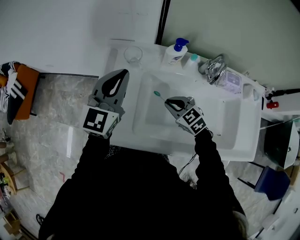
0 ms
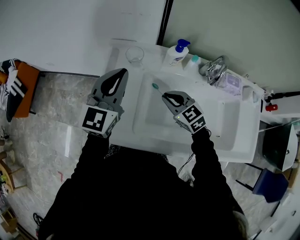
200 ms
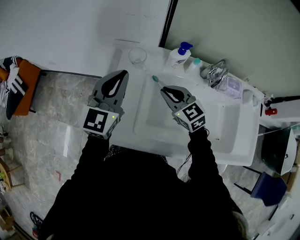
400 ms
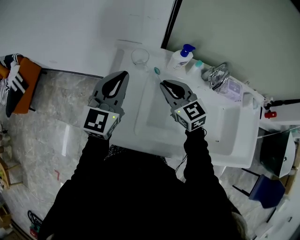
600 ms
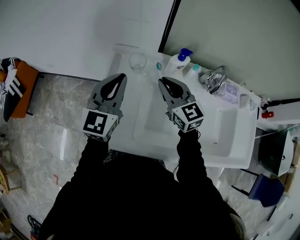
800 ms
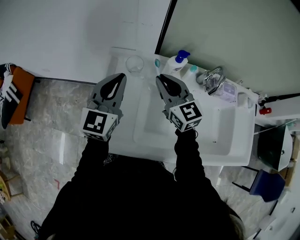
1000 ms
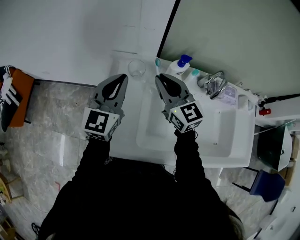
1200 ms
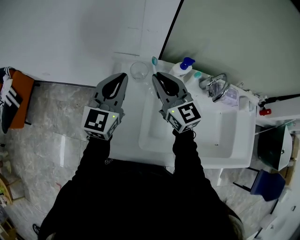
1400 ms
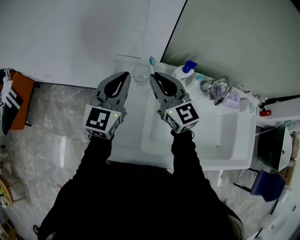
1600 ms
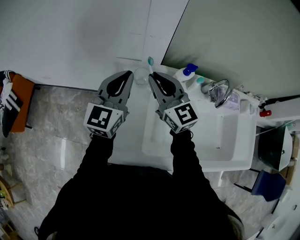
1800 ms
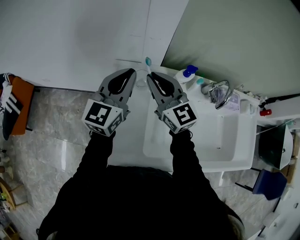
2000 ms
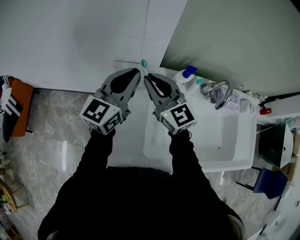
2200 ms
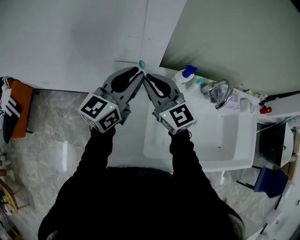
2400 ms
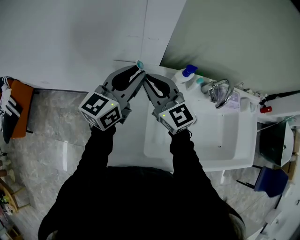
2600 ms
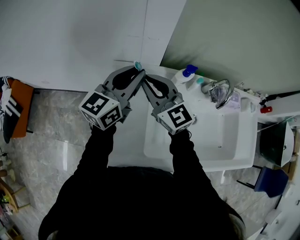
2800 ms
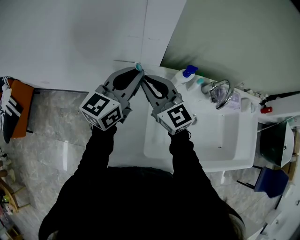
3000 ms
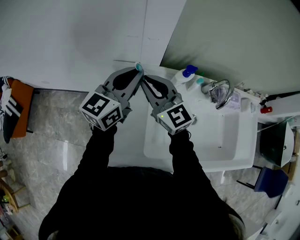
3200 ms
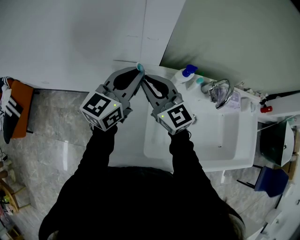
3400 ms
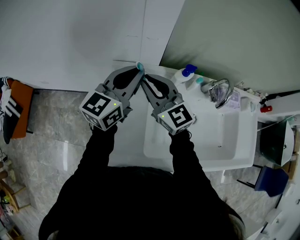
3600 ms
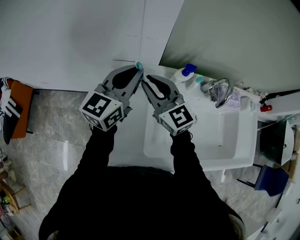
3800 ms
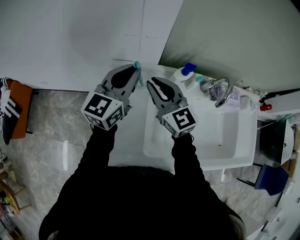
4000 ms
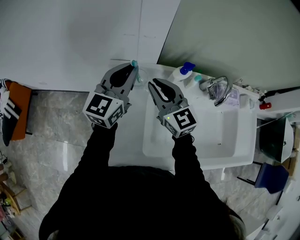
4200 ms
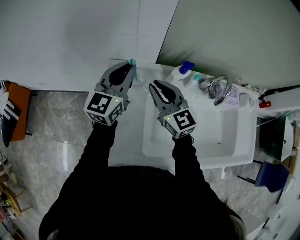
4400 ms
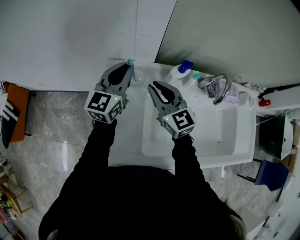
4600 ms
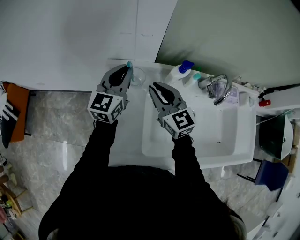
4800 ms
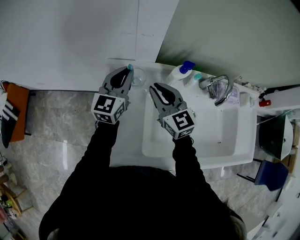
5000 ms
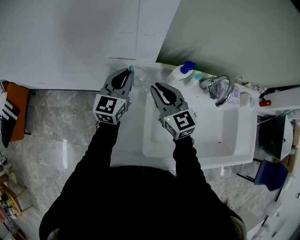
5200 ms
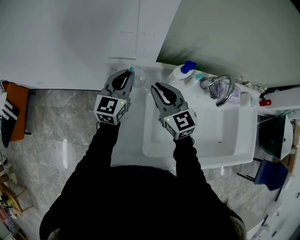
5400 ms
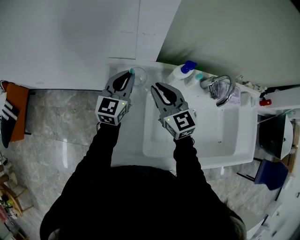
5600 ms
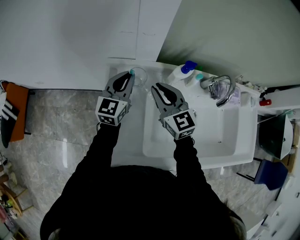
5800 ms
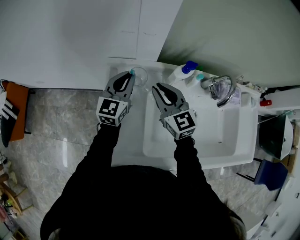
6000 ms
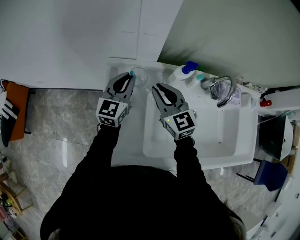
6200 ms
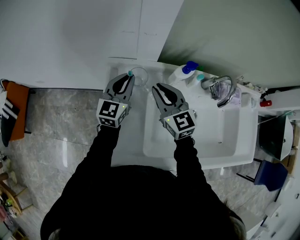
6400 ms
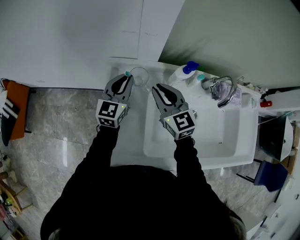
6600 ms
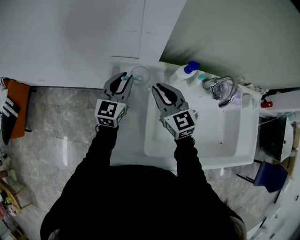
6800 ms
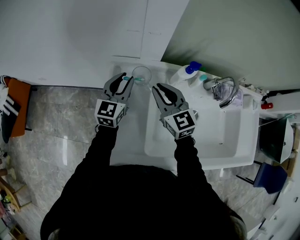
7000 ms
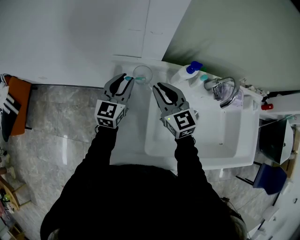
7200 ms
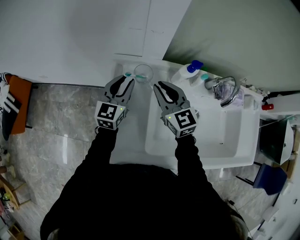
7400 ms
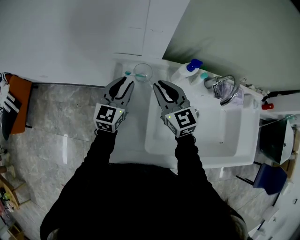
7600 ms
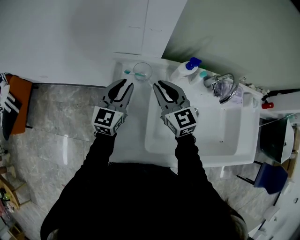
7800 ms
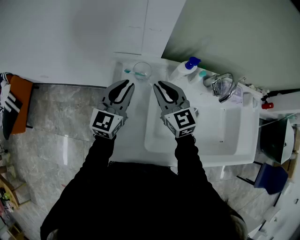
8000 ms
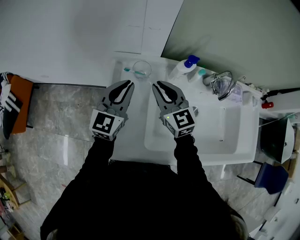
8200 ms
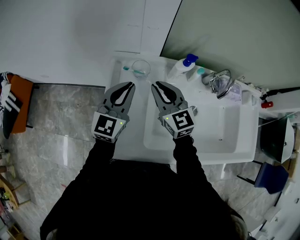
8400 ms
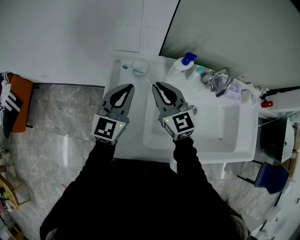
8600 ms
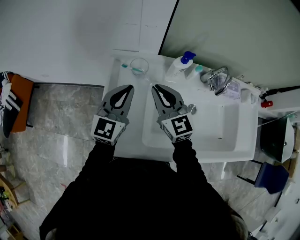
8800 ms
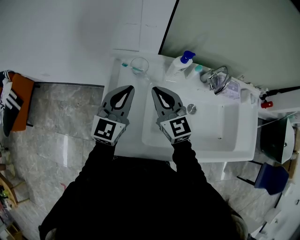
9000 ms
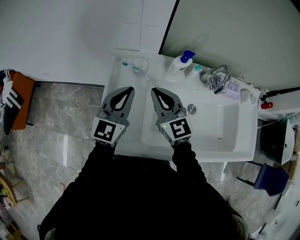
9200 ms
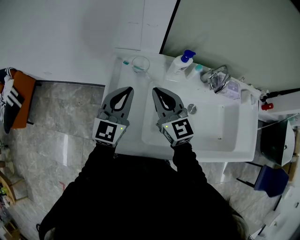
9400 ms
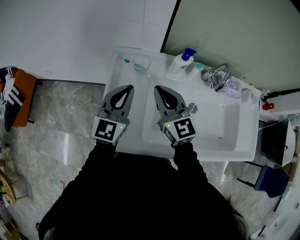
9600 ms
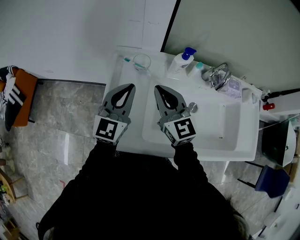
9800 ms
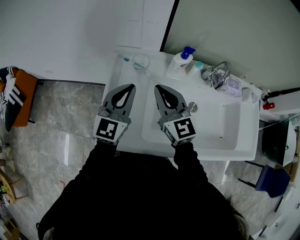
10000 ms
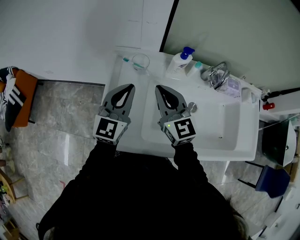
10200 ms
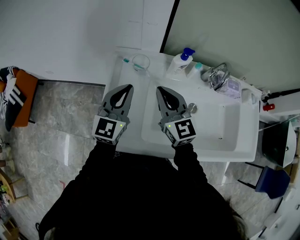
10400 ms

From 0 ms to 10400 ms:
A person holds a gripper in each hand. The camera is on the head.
From 0 ms to 1400 ms: The right gripper moves upward, forward and to the left, about 25 cm, and tips its fingers upward by about 40 degrees. Meanwhile the left gripper goes about 5 cm forward.
From 1400 ms to 3000 ms: The right gripper moves to the left, approximately 5 cm. Meanwhile the left gripper moves about 5 cm, and rotates approximately 20 degrees.
From 3000 ms to 4400 ms: The right gripper shifts by approximately 5 cm.
From 4400 ms to 6000 ms: The left gripper travels downward by approximately 10 cm.
From 6000 ms to 7400 ms: The left gripper opens up.
From 7400 ms to 9000 ms: The left gripper shifts approximately 15 cm backward and upward, and closes its fingers; the right gripper moves backward, about 5 cm.
From 9000 ms to 10400 ms: There are only small adjustments of the grippers.

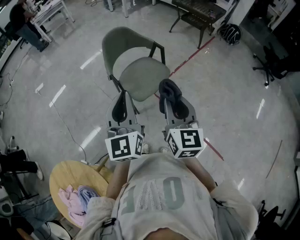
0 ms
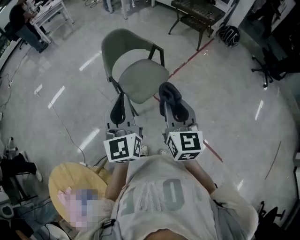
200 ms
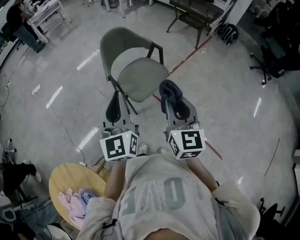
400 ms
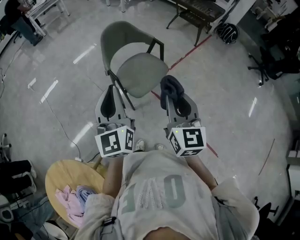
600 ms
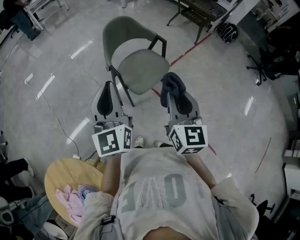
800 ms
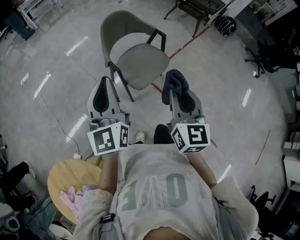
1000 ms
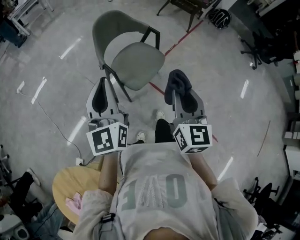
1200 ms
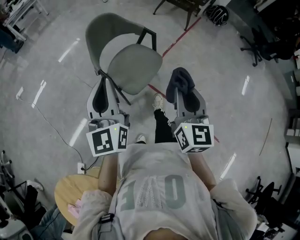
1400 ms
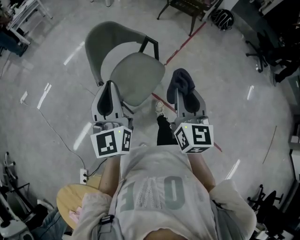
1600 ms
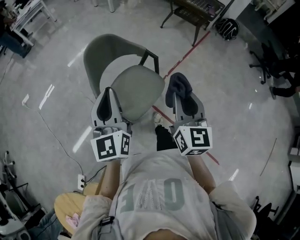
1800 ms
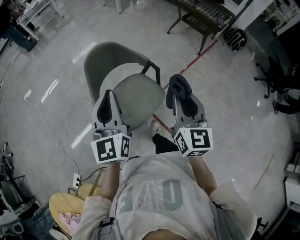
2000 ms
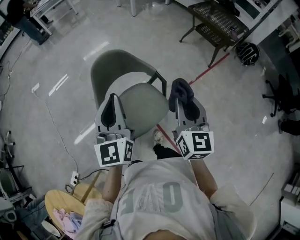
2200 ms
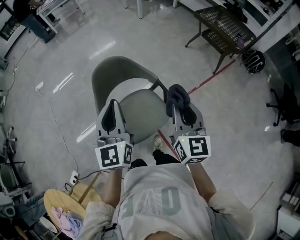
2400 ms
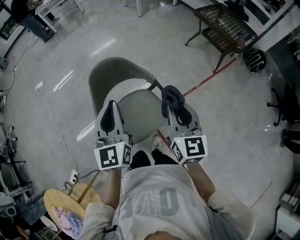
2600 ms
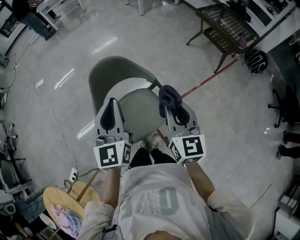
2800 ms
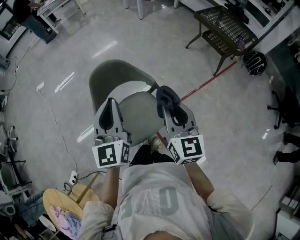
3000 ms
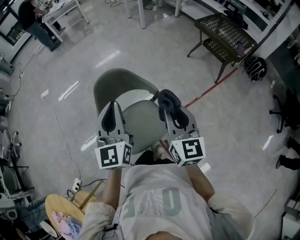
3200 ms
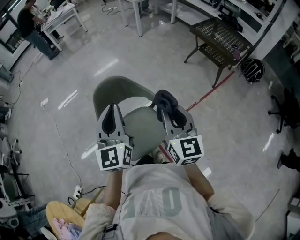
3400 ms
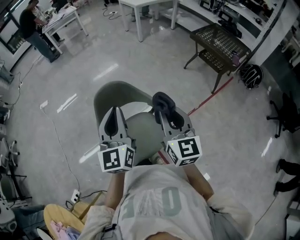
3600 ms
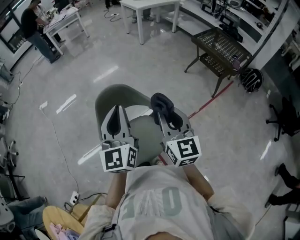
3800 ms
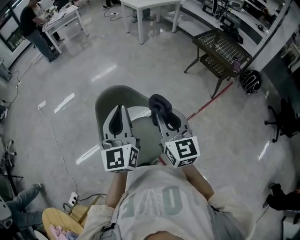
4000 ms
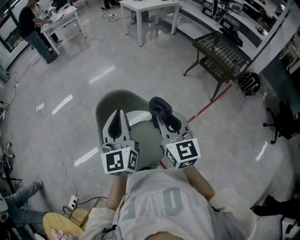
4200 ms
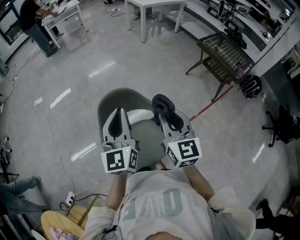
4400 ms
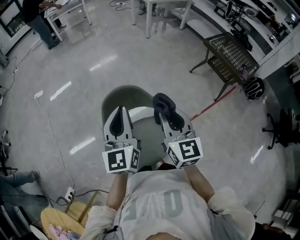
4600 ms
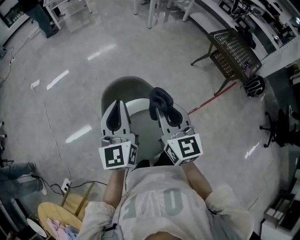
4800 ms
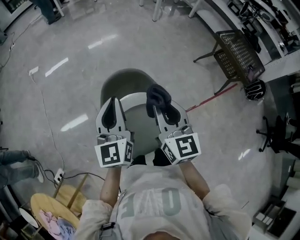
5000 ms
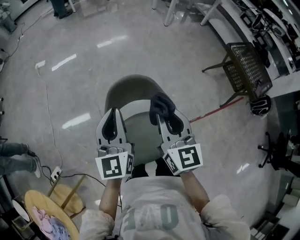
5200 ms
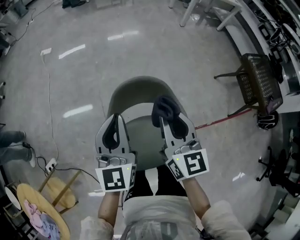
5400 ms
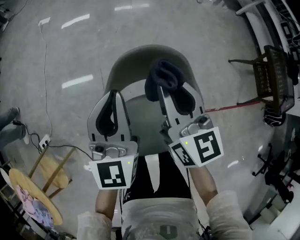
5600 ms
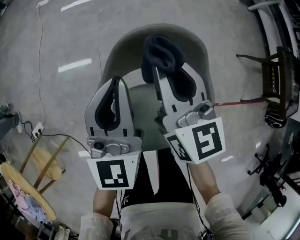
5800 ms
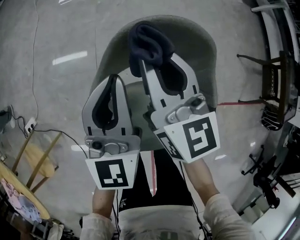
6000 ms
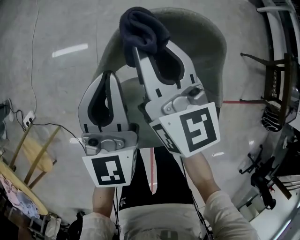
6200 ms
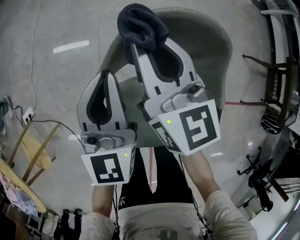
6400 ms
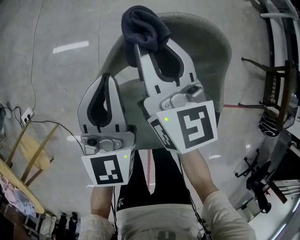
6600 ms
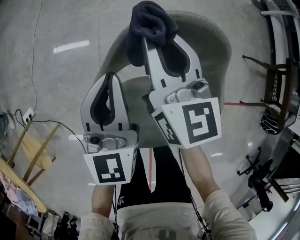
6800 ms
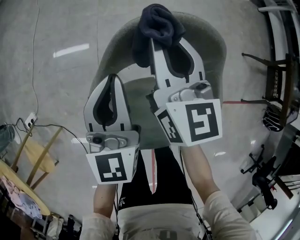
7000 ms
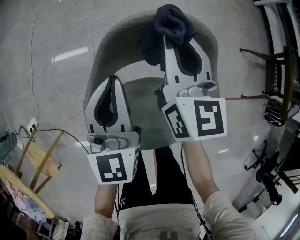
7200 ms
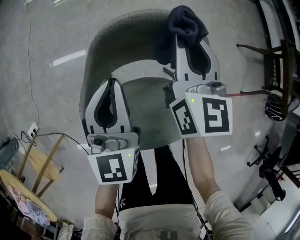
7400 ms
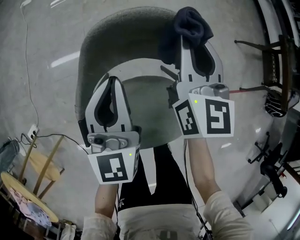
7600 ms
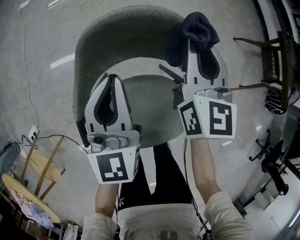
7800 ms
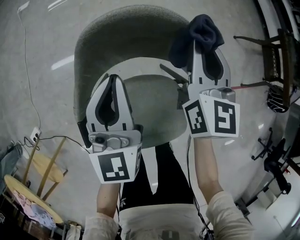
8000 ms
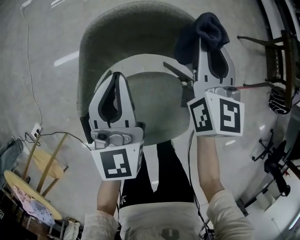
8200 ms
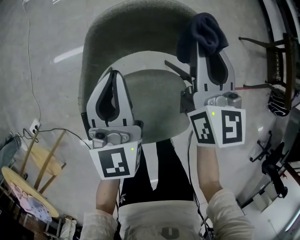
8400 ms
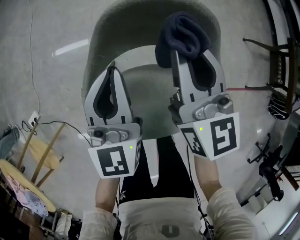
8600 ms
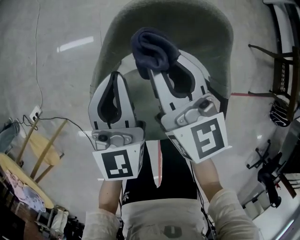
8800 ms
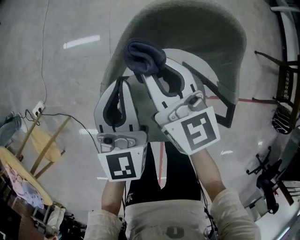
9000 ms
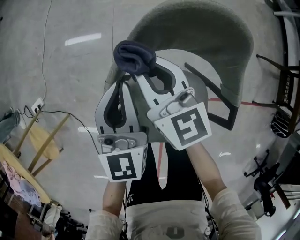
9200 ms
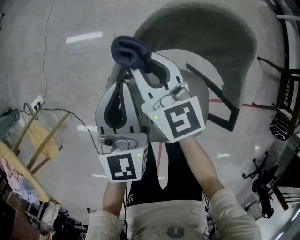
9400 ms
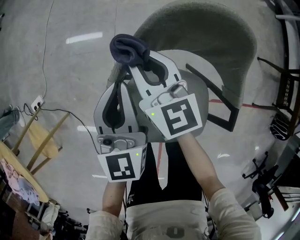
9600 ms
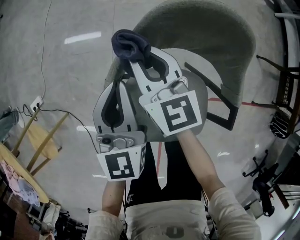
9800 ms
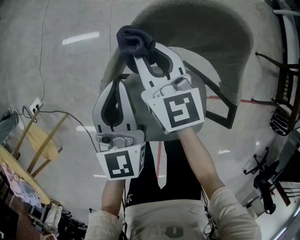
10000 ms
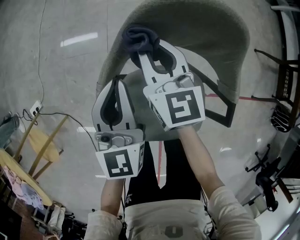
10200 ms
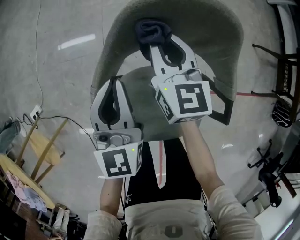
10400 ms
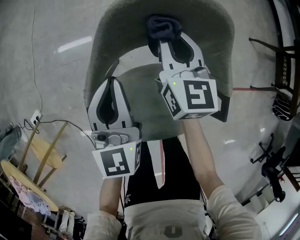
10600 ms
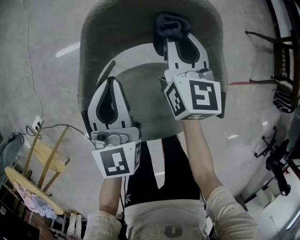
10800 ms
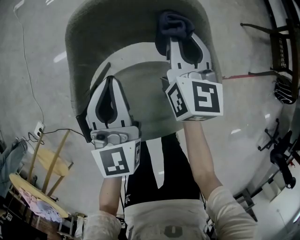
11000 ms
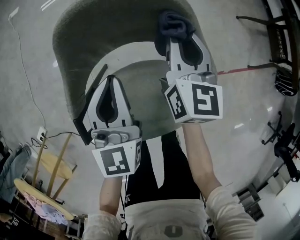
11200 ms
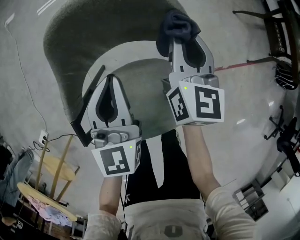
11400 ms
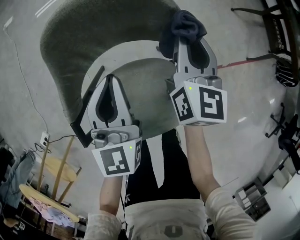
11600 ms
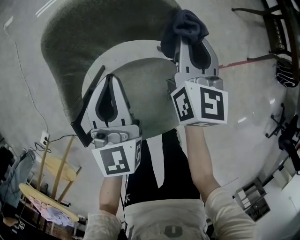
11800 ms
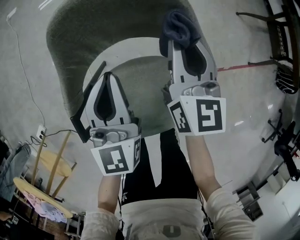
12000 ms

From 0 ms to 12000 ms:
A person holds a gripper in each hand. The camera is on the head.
From 0 ms to 1600 ms: Both grippers travel together forward, some 15 cm.
From 1600 ms to 3000 ms: The left gripper moves forward and to the right, approximately 25 cm, while the right gripper is displaced forward by approximately 30 cm, and rotates about 30 degrees.
From 3000 ms to 4400 ms: The right gripper travels forward and to the left by approximately 15 cm, while the left gripper heads forward, covering some 10 cm.
From 4400 ms to 6000 ms: The left gripper goes about 25 cm downward, and changes its angle by roughly 30 degrees. The right gripper ends up some 40 cm from where it was, and changes its angle by roughly 30 degrees.
From 6000 ms to 7600 ms: The left gripper is displaced downward by about 5 cm. The right gripper shifts about 15 cm to the right, and turns by some 20 degrees.
From 7600 ms to 9000 ms: The right gripper changes place by some 20 cm, and swivels roughly 40 degrees, while the left gripper moves some 10 cm.
From 9000 ms to 10400 ms: The right gripper goes roughly 10 cm to the right and downward.
From 10400 ms to 12000 ms: The left gripper is displaced to the right by about 10 cm. The right gripper moves to the right, about 20 cm, and changes its angle by about 20 degrees.

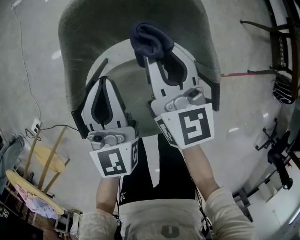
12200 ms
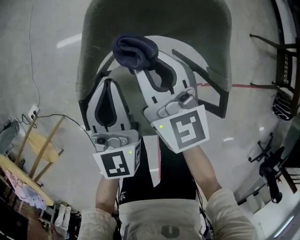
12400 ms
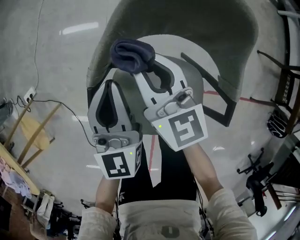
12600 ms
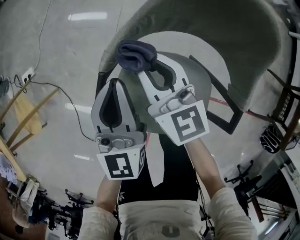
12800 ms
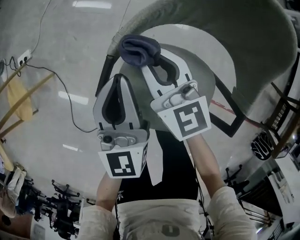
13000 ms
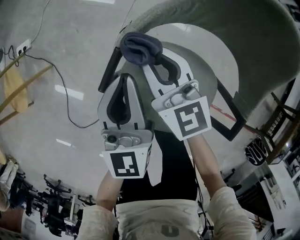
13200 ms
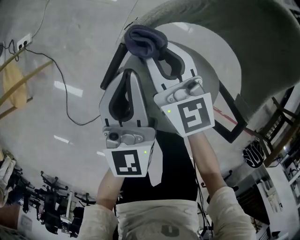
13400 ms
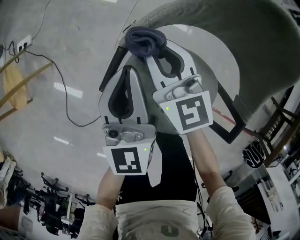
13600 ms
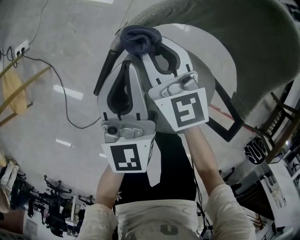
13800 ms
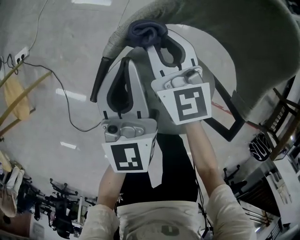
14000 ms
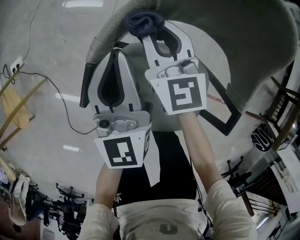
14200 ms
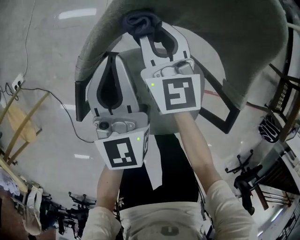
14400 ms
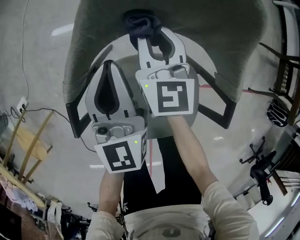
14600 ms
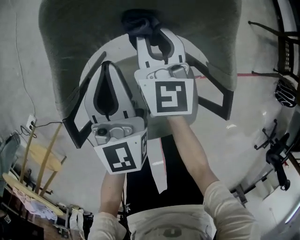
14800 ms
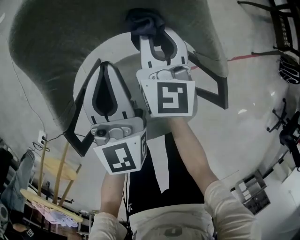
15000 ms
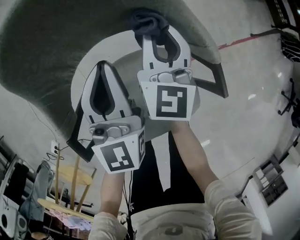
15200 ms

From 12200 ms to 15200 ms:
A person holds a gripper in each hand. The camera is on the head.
From 12200 ms to 13800 ms: The left gripper ends up approximately 15 cm from where it was, and rotates about 30 degrees, while the right gripper shifts by some 25 cm, and rotates some 40 degrees.
From 13800 ms to 15200 ms: The left gripper ends up about 25 cm from where it was, and turns by approximately 50 degrees. The right gripper shifts by roughly 35 cm, and swivels about 70 degrees.
